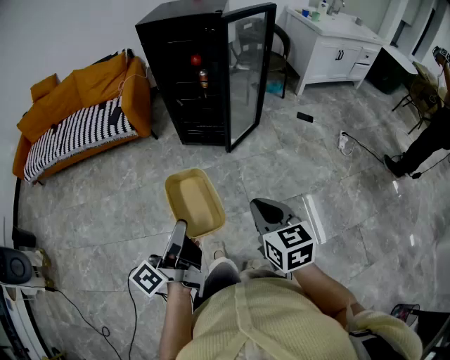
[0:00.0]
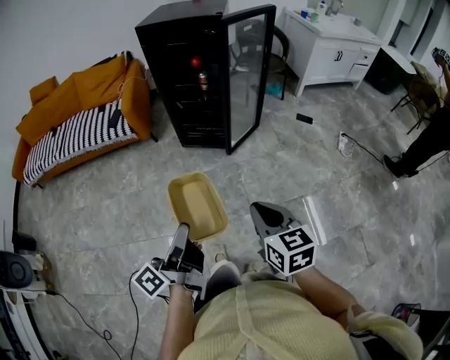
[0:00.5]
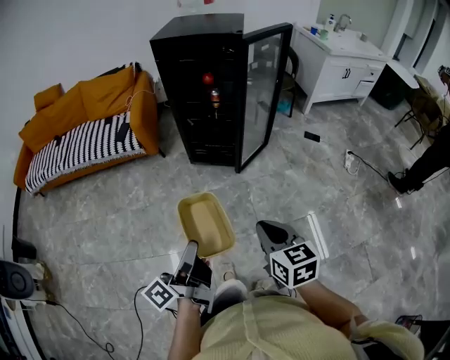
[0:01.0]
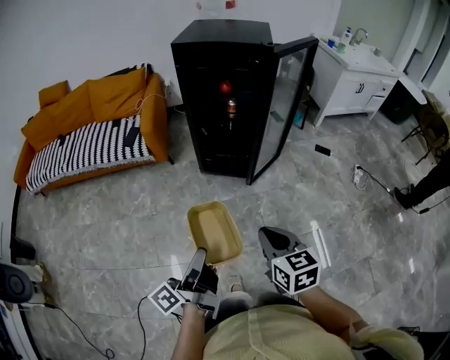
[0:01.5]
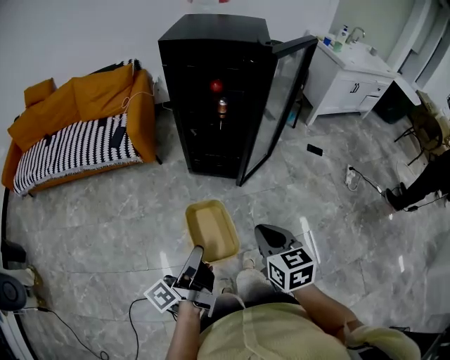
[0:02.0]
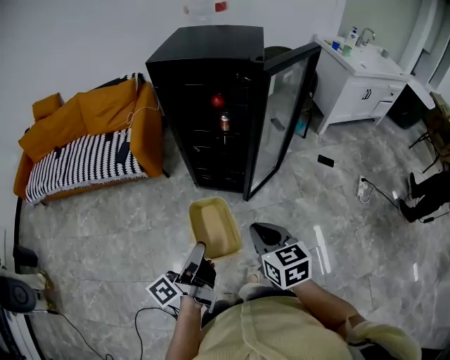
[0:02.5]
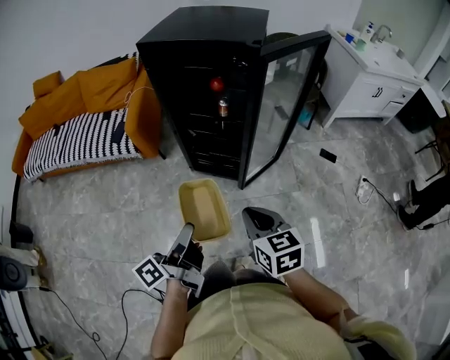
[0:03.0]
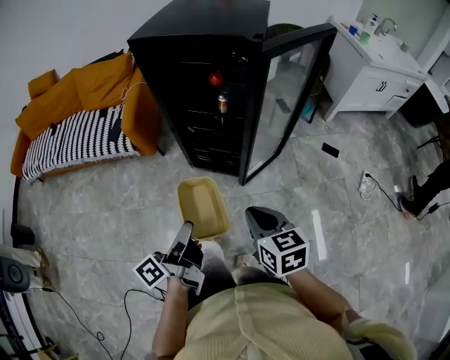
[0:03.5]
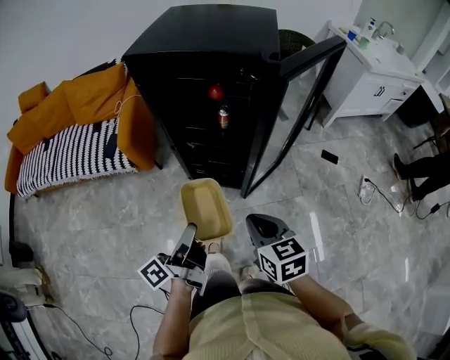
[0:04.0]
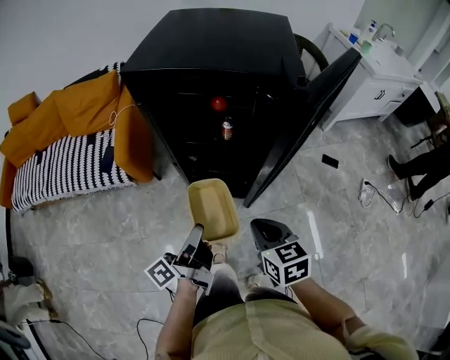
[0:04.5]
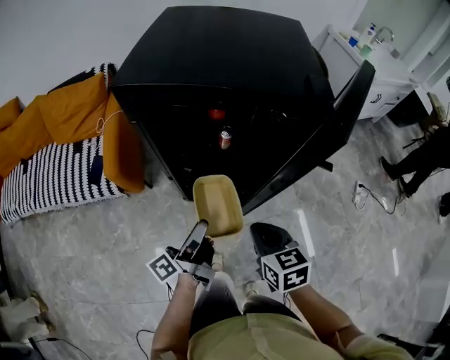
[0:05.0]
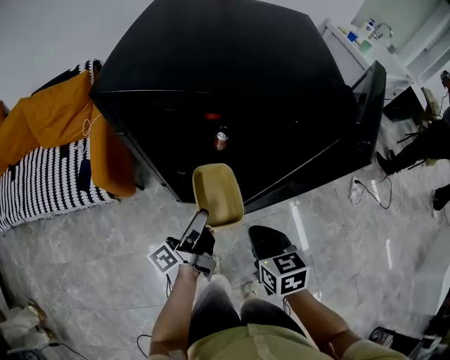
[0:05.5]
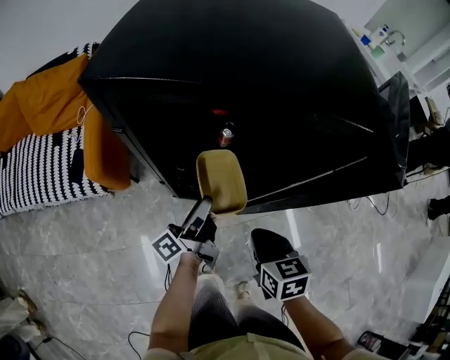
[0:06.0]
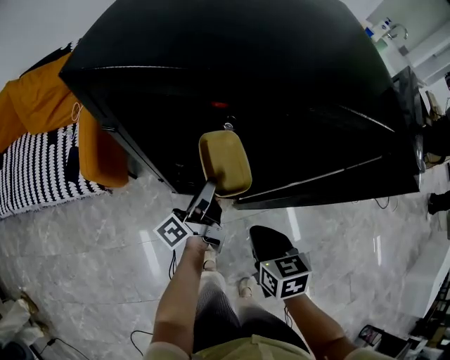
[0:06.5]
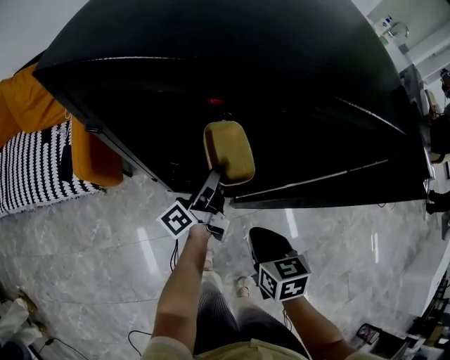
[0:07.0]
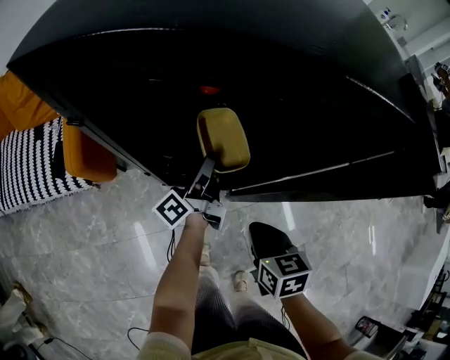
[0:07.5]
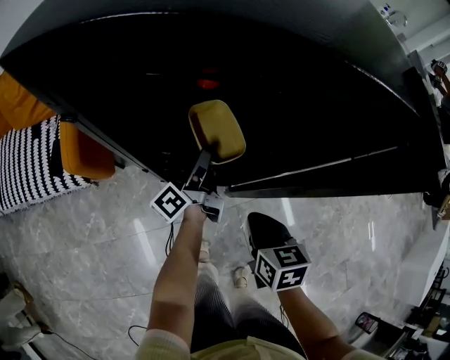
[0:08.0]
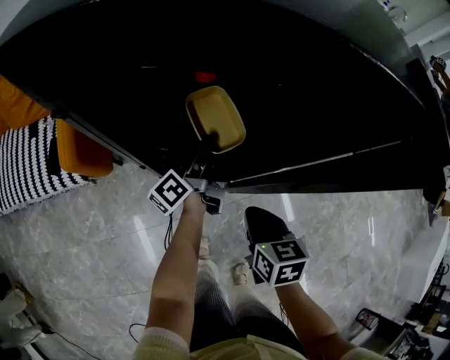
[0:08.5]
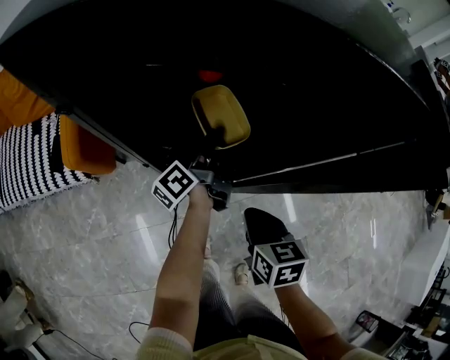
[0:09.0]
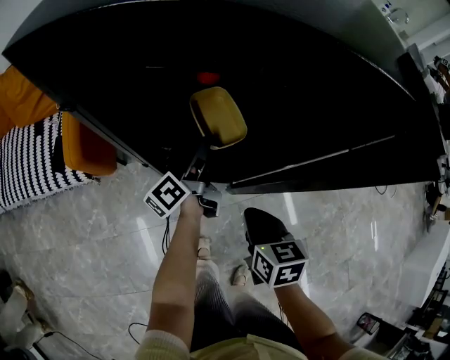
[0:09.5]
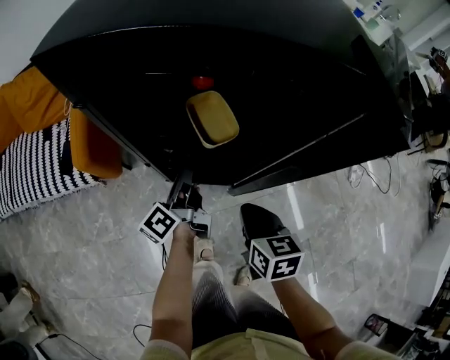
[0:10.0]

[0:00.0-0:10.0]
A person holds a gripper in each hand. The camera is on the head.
0.0 to 2.0 s: The right gripper ends up approximately 20 cm from where it was.
2.0 to 4.0 s: The right gripper moves approximately 20 cm.
4.0 to 6.0 s: The right gripper moves roughly 20 cm.

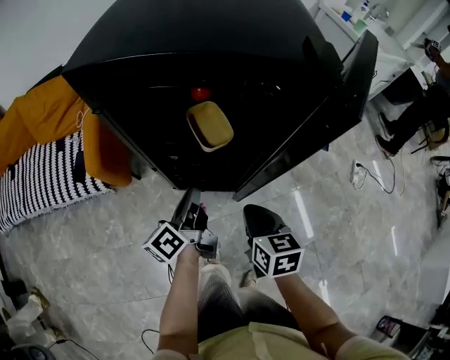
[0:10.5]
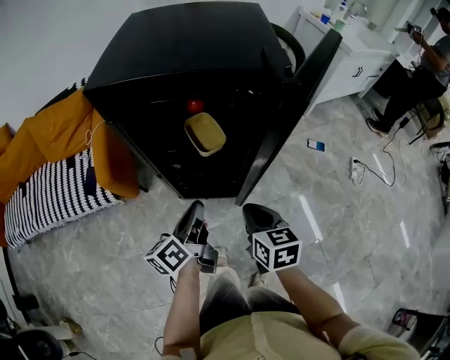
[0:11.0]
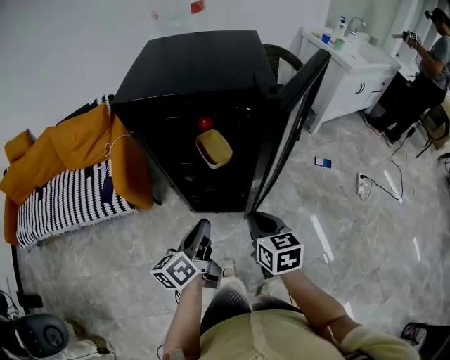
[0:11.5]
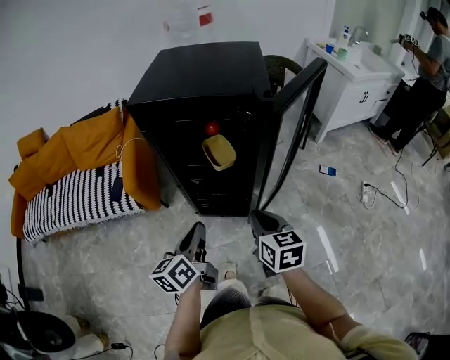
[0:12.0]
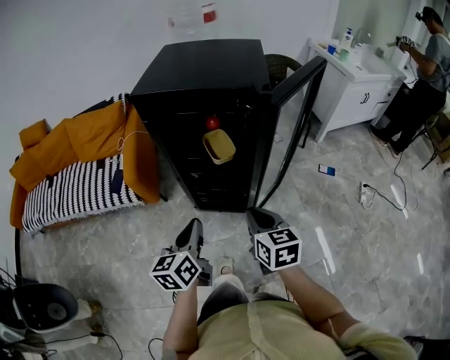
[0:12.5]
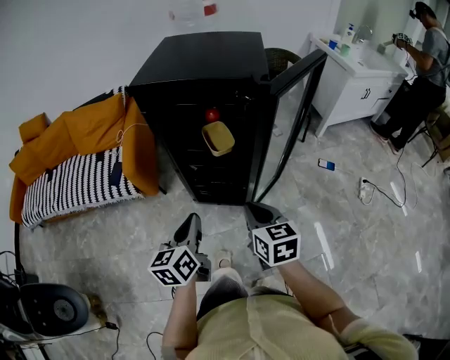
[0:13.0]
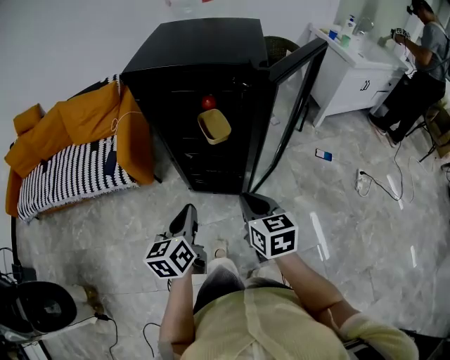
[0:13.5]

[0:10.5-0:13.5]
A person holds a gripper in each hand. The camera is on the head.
10.5 to 12.0 s: The right gripper travels upward by some 10 cm.

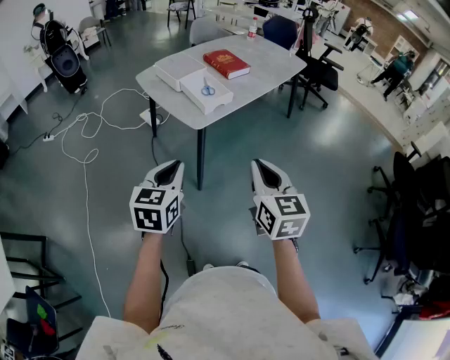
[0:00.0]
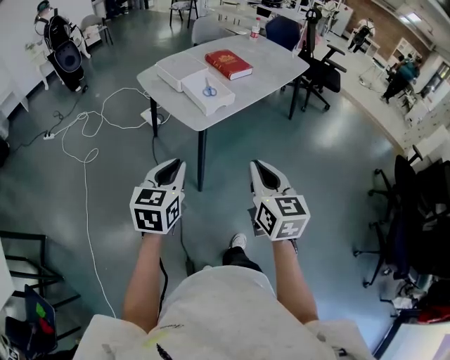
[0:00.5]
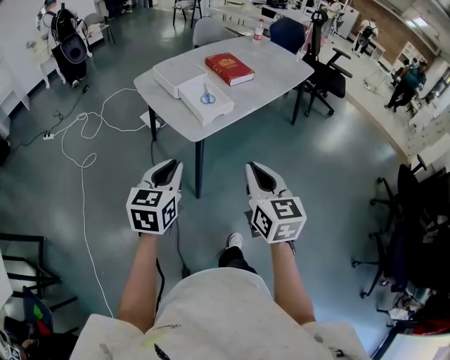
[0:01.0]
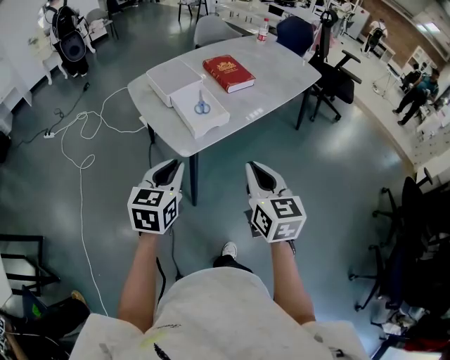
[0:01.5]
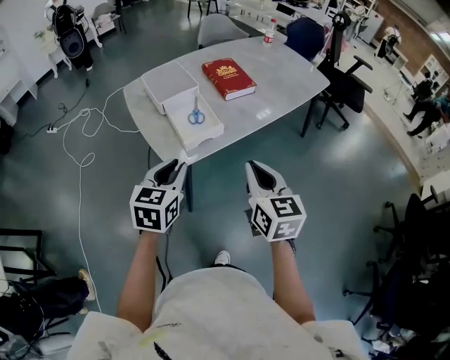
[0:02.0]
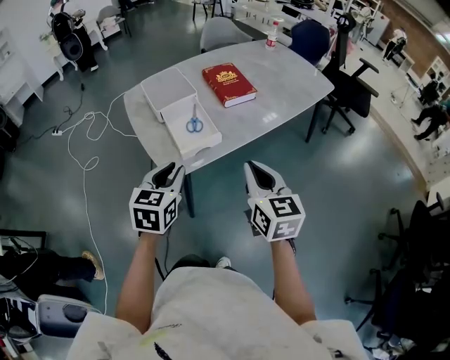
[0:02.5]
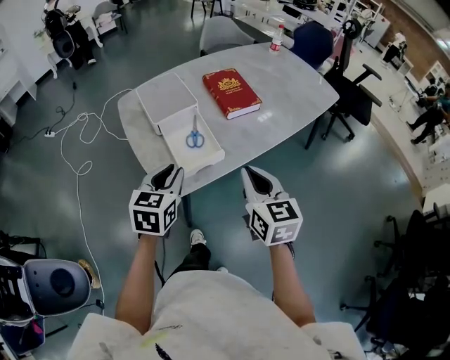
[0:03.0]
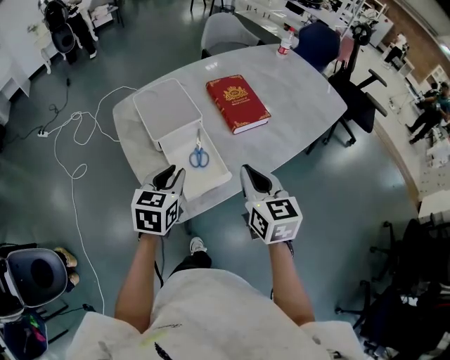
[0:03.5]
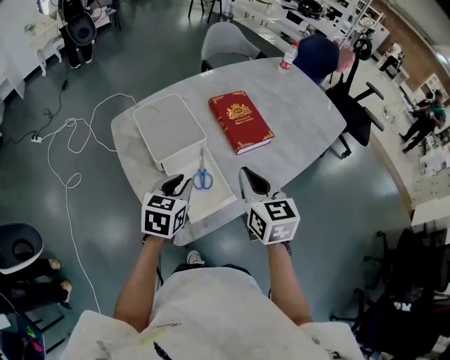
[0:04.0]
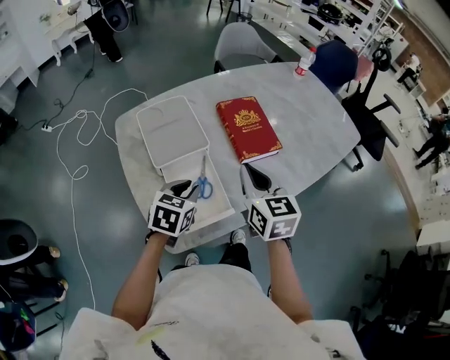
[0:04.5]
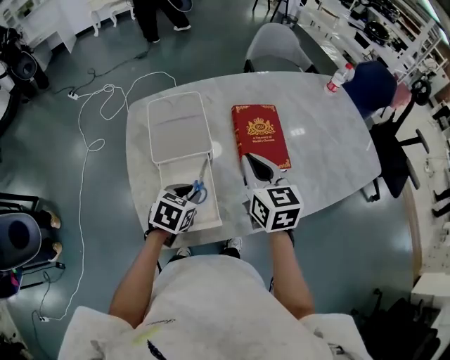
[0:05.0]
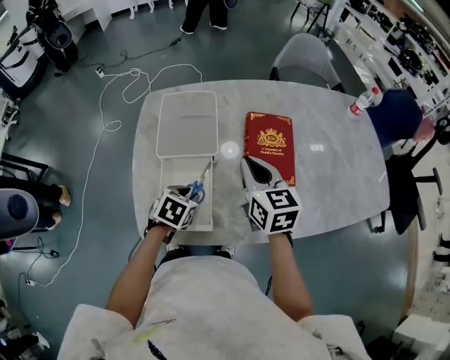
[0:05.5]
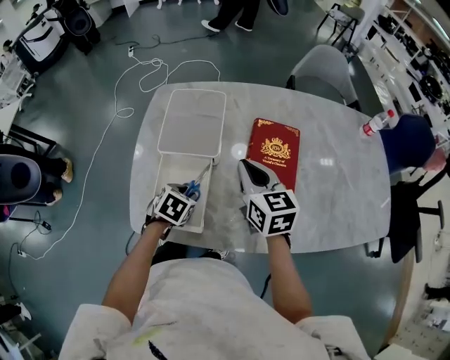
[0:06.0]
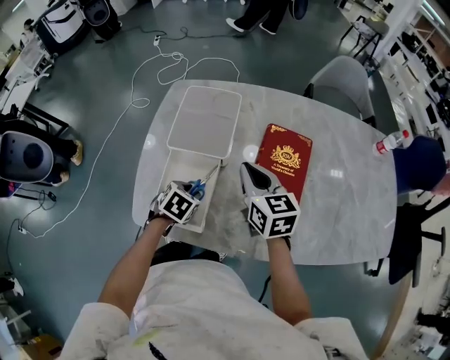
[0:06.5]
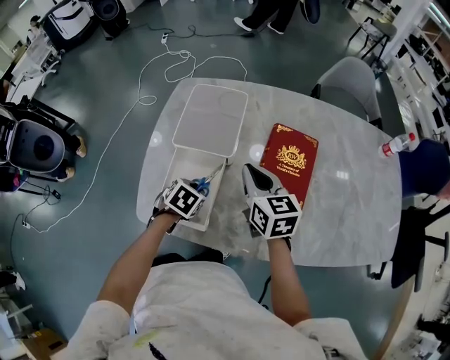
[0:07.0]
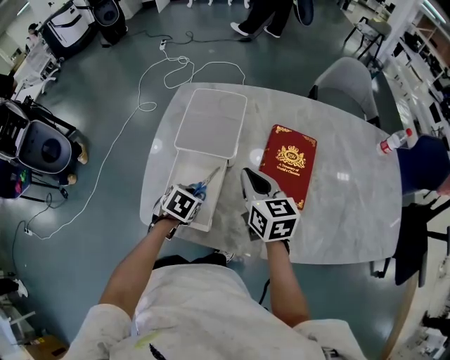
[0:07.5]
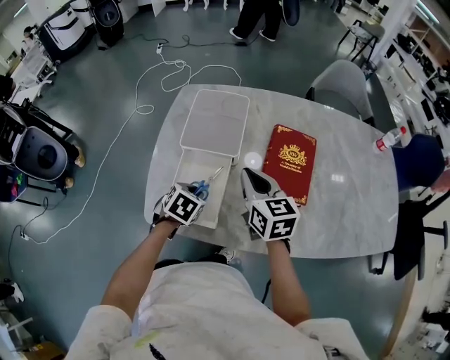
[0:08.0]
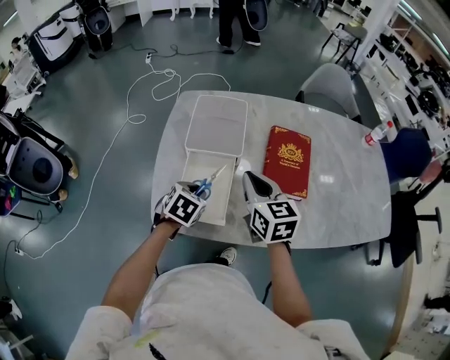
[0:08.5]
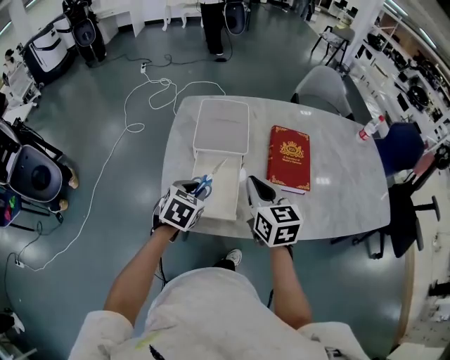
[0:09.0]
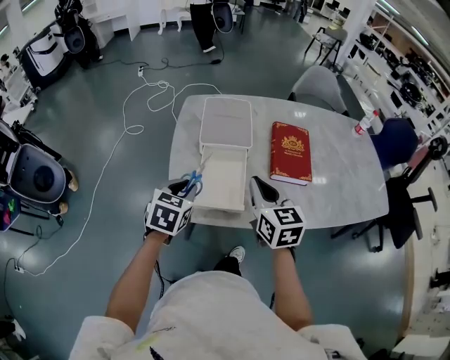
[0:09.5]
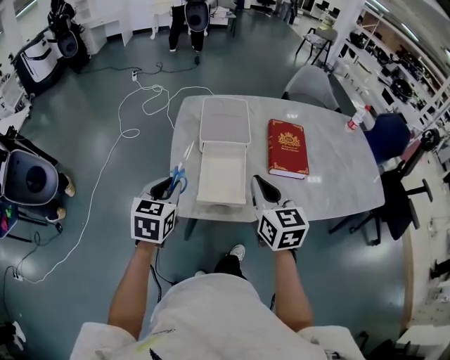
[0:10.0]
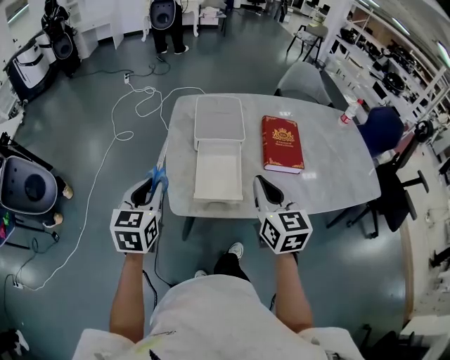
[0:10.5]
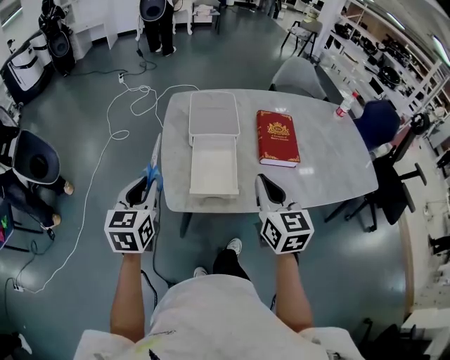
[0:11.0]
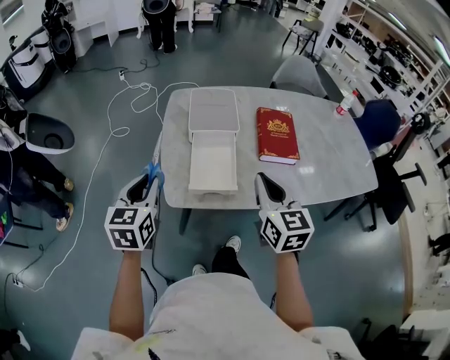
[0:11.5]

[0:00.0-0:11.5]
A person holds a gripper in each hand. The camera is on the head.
0.0 to 2.0 s: The right gripper heads forward, covering about 30 cm. Meanwhile the left gripper travels forward and to the right by approximately 30 cm.
2.0 to 4.0 s: The two grippers go approximately 30 cm forward.
4.0 to 6.0 s: The right gripper moves approximately 20 cm, and rotates about 40 degrees, while the left gripper is displaced downward by about 15 cm, and rotates roughly 40 degrees.
6.0 to 7.5 s: There are only small adjustments of the grippers.
7.5 to 9.5 s: The left gripper travels upward, to the left and backward by some 20 cm, and changes its angle by about 30 degrees. Meanwhile the right gripper heads backward, to the left and upward, covering about 15 cm.
9.5 to 11.5 s: The left gripper moves to the left, upward and backward, roughly 10 cm, and changes its angle by roughly 20 degrees; the right gripper travels backward by approximately 10 cm.

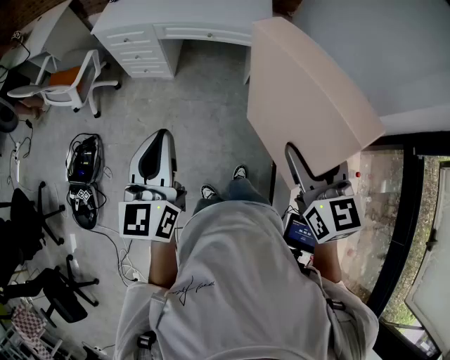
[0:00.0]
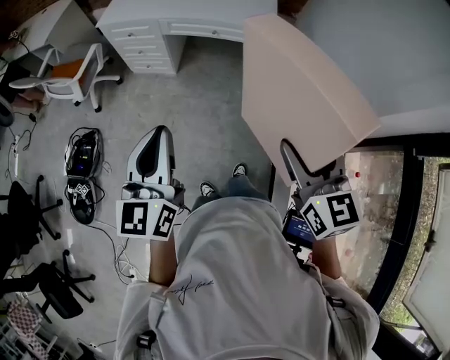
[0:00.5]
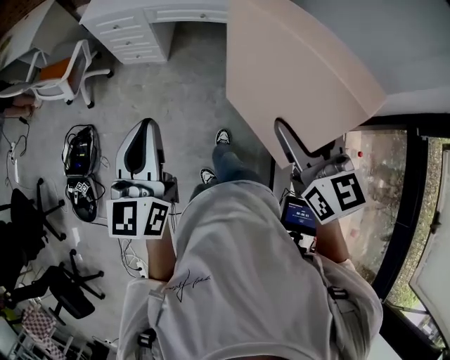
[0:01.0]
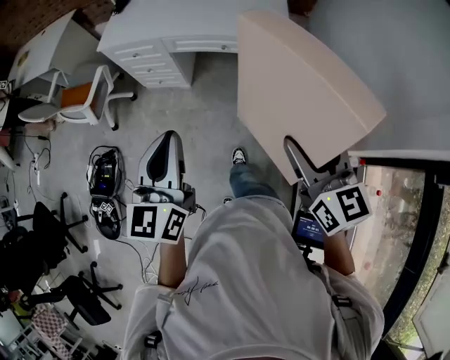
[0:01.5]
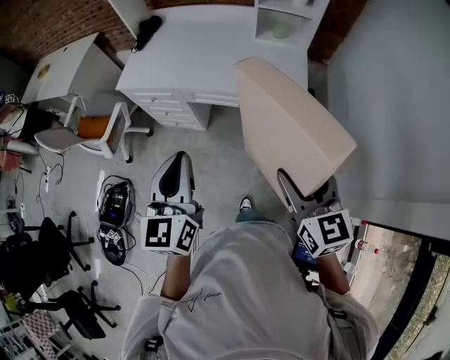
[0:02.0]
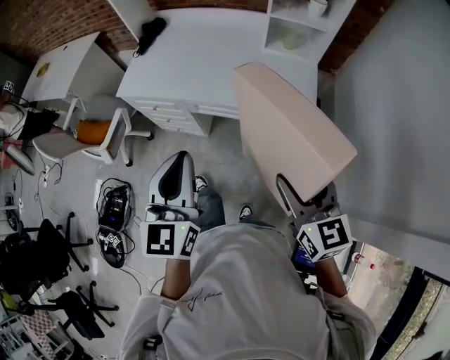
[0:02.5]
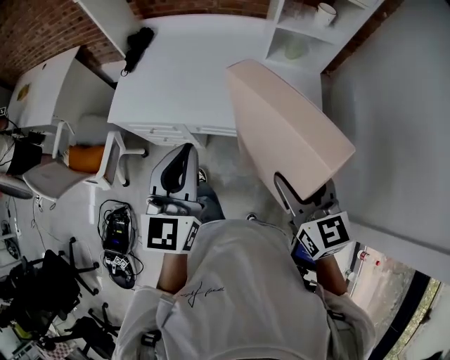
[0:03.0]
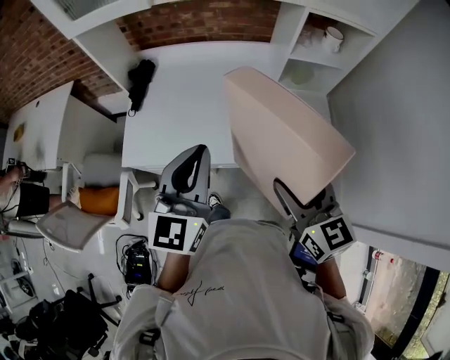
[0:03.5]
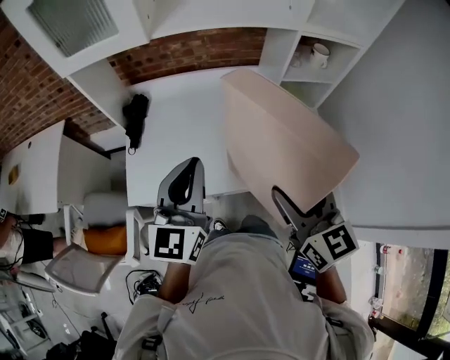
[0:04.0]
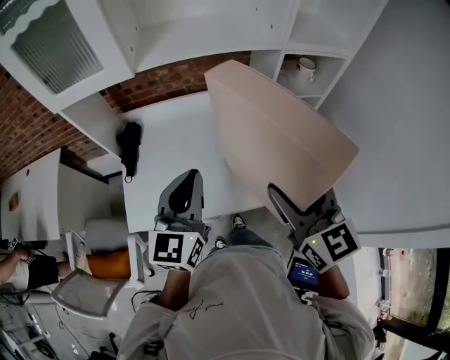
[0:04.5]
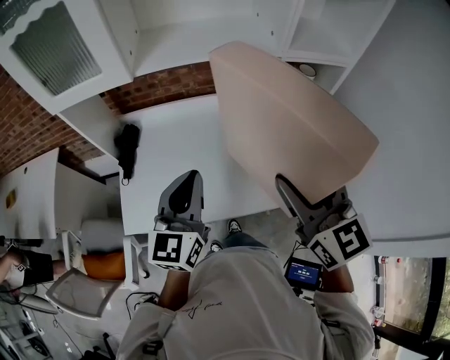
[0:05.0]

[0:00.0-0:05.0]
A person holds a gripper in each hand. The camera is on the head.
0.0 to 2.5 s: The grippers both shift forward by some 35 cm.
2.5 to 5.0 s: The left gripper moves forward, approximately 40 cm, and rotates roughly 30 degrees. The right gripper travels forward, to the left and upward by some 40 cm, and rotates approximately 20 degrees.
